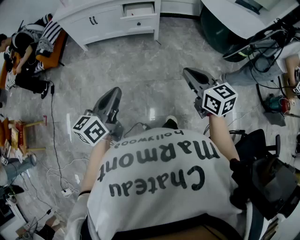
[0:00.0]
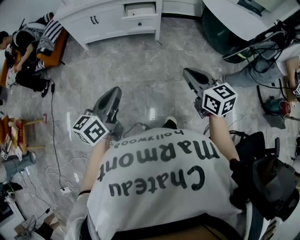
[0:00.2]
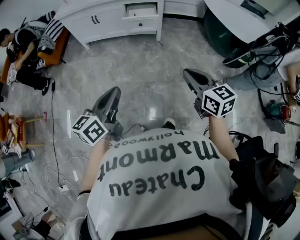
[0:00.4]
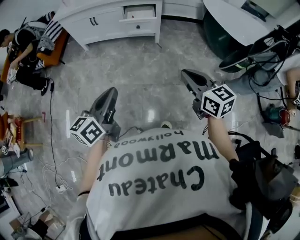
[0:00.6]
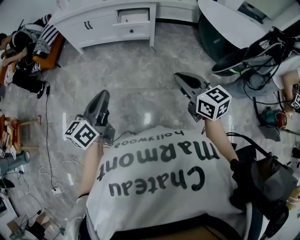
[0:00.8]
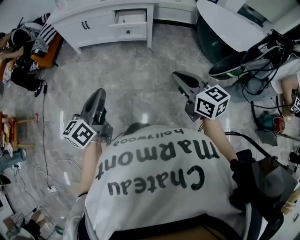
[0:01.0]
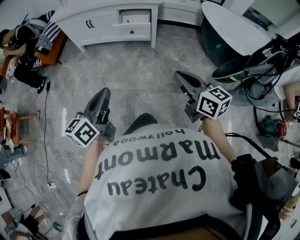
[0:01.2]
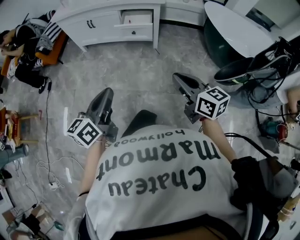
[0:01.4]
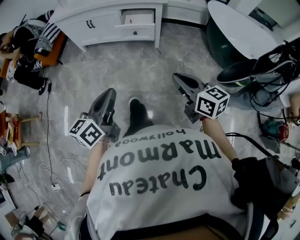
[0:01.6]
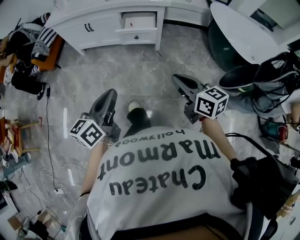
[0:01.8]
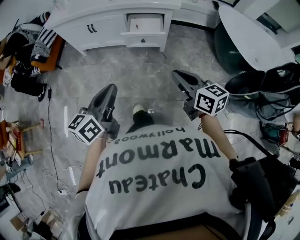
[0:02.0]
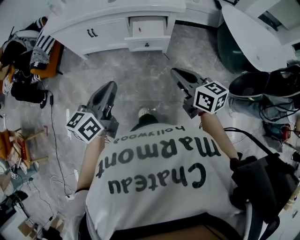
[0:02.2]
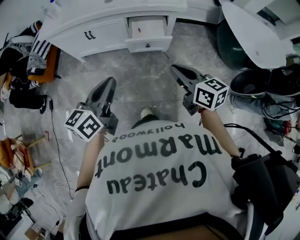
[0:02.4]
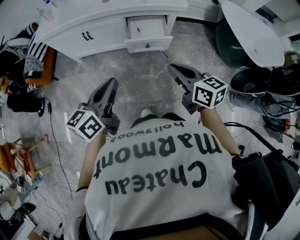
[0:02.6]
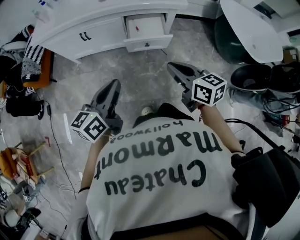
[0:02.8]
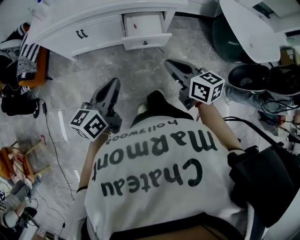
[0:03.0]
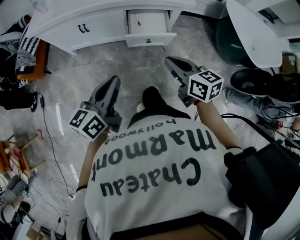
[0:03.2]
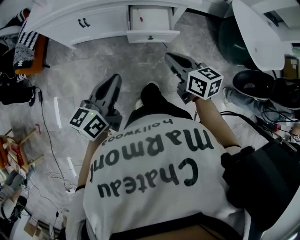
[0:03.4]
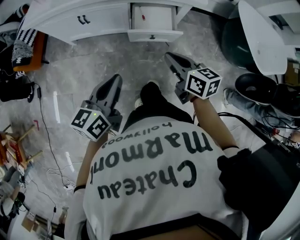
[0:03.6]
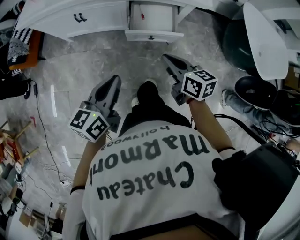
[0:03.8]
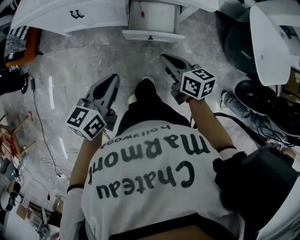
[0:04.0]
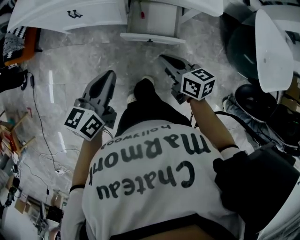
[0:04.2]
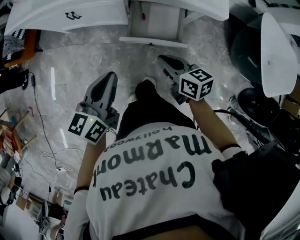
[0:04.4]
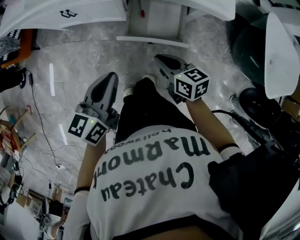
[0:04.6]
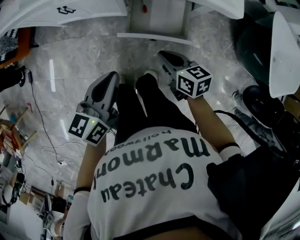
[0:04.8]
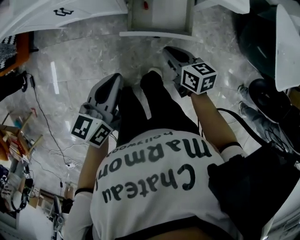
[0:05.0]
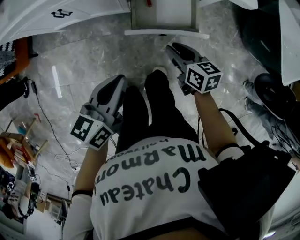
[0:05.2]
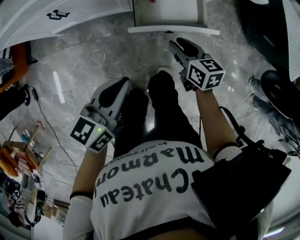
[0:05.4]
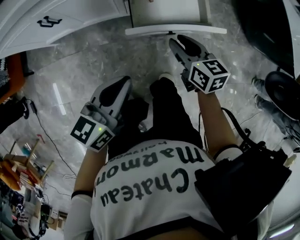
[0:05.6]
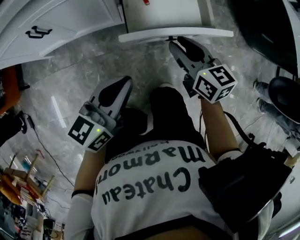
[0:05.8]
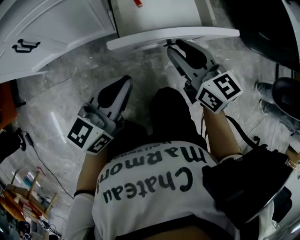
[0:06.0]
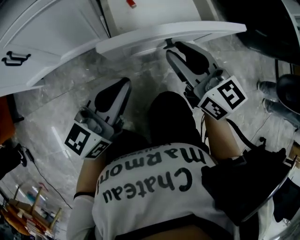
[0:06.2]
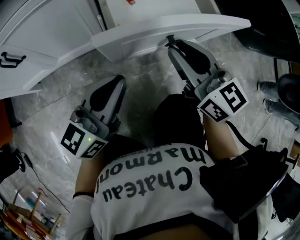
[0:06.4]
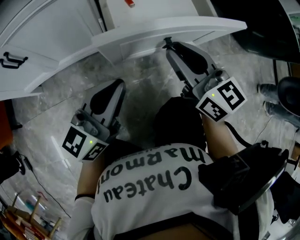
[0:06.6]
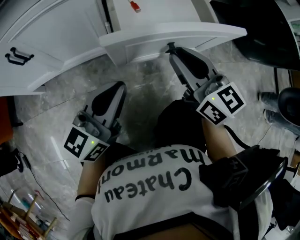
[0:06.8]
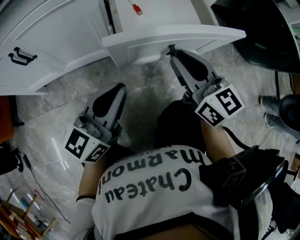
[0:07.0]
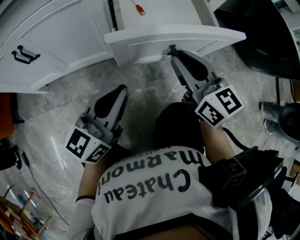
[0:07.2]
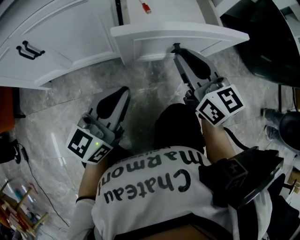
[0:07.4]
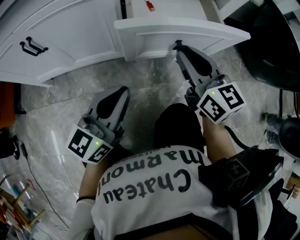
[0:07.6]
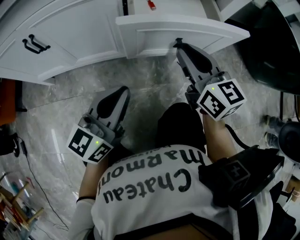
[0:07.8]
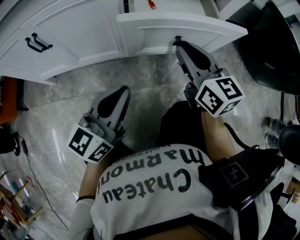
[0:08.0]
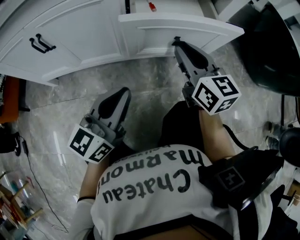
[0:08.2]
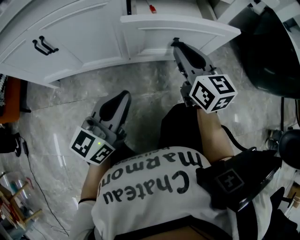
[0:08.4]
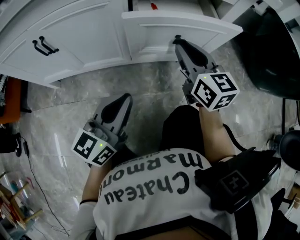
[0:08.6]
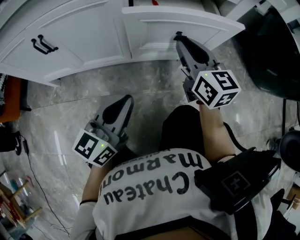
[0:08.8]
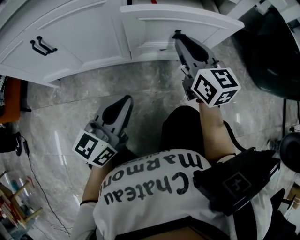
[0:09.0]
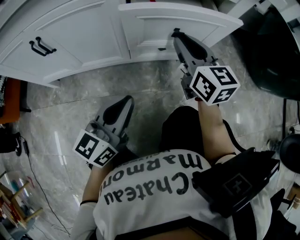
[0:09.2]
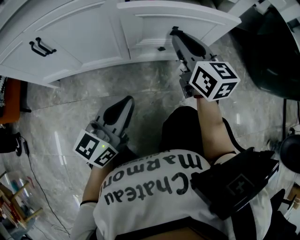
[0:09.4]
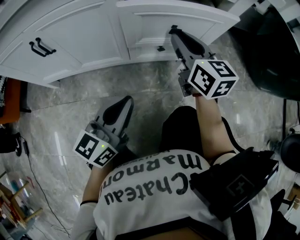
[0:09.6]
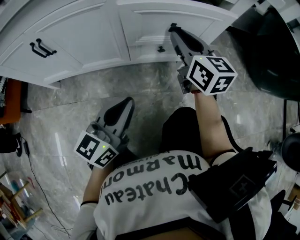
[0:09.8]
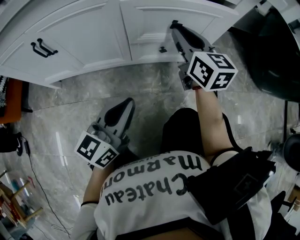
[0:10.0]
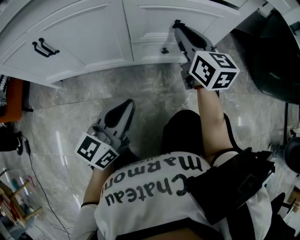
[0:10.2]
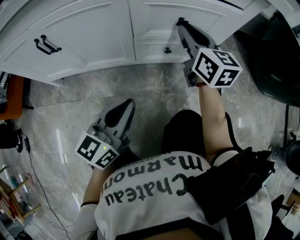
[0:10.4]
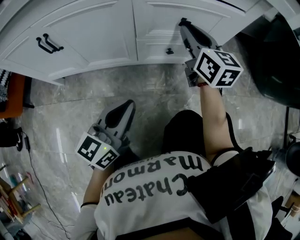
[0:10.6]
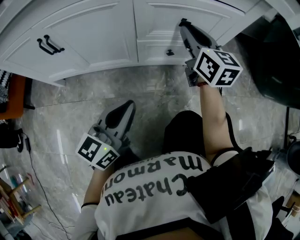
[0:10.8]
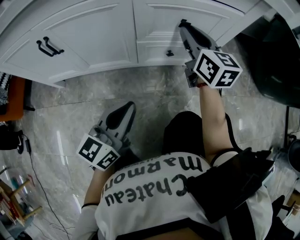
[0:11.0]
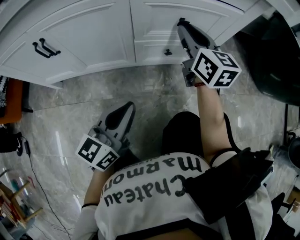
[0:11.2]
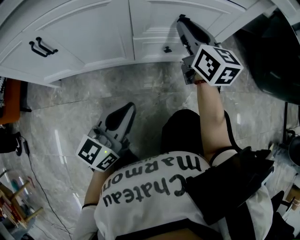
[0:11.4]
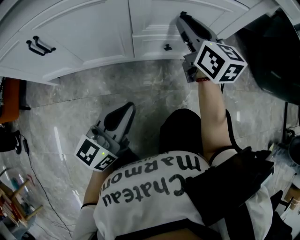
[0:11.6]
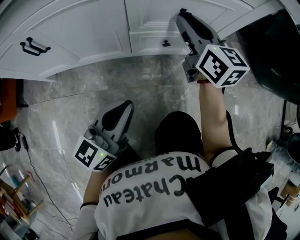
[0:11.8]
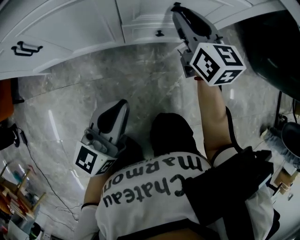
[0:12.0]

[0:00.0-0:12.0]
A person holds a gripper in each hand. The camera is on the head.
0:00.0 to 0:01.6: Both grippers travel together forward and to the right, some 15 cm.
0:01.6 to 0:03.0: The grippers both shift forward and to the left by approximately 30 cm.
0:03.0 to 0:04.4: The right gripper goes some 25 cm downward and forward; the left gripper is displaced forward and downward by some 15 cm.
0:04.4 to 0:06.0: The left gripper goes about 25 cm downward, and swivels approximately 30 degrees; the right gripper goes approximately 15 cm downward, turns by approximately 30 degrees, and opens up.
0:06.0 to 0:07.6: The left gripper changes place by some 5 cm; the right gripper goes some 5 cm forward.
0:07.6 to 0:09.0: The right gripper changes place by about 5 cm.
0:09.0 to 0:10.4: The right gripper is displaced forward by some 5 cm.
0:10.4 to 0:12.0: The grippers make only small movements.

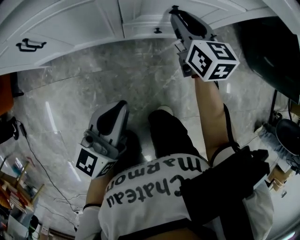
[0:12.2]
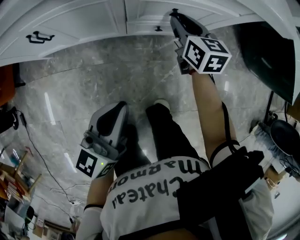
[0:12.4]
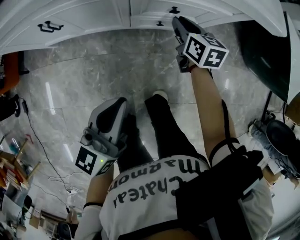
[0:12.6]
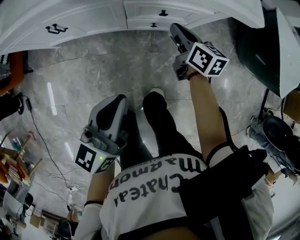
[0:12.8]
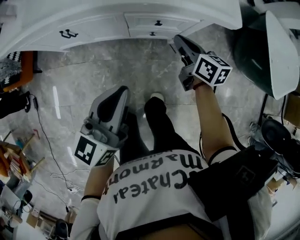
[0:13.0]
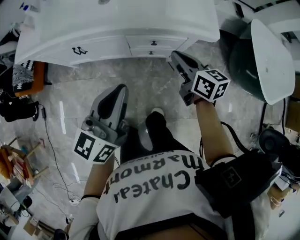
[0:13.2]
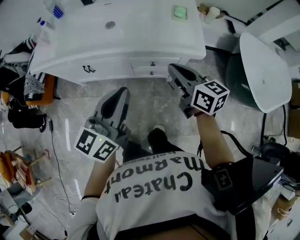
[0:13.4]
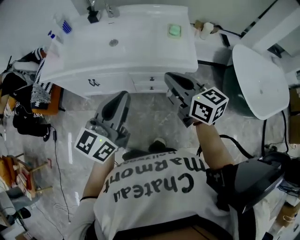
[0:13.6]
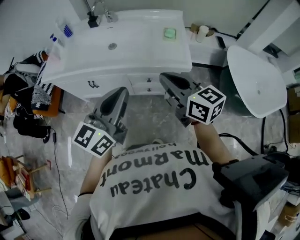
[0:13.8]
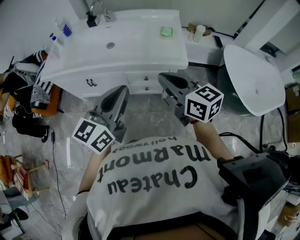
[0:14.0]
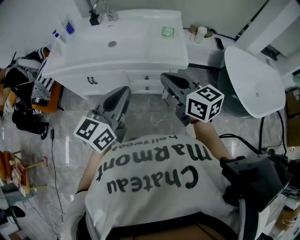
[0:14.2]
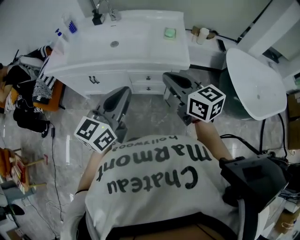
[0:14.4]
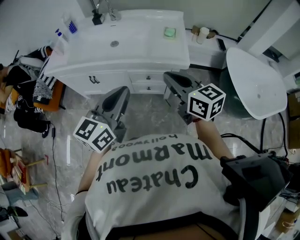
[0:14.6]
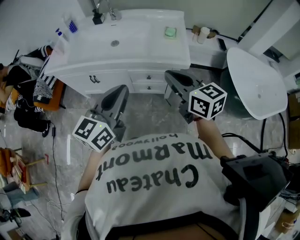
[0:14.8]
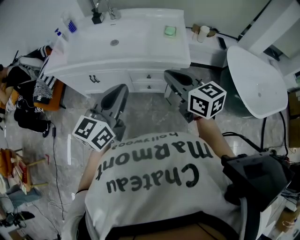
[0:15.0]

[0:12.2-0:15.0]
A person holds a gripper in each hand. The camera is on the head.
0:12.2 to 0:13.6: The two grippers go approximately 40 cm upward. The right gripper rotates some 30 degrees, and closes.
0:13.6 to 0:15.0: The right gripper shifts by approximately 5 cm.

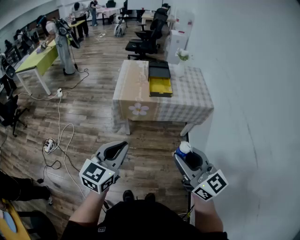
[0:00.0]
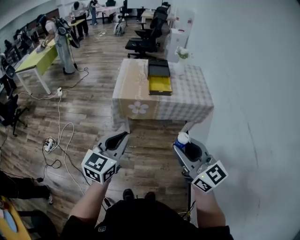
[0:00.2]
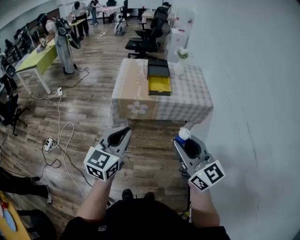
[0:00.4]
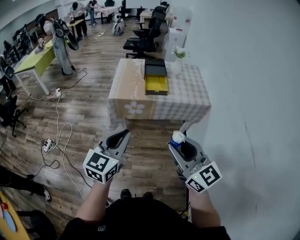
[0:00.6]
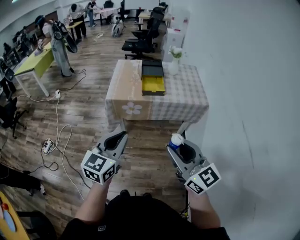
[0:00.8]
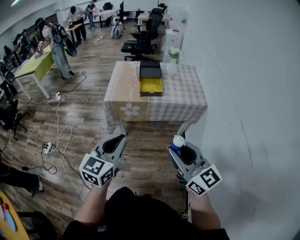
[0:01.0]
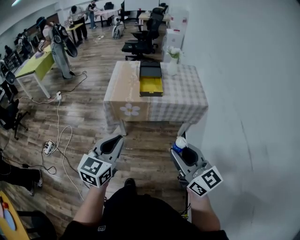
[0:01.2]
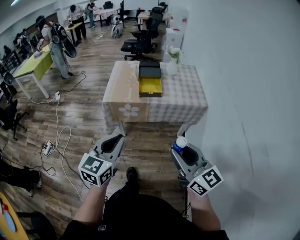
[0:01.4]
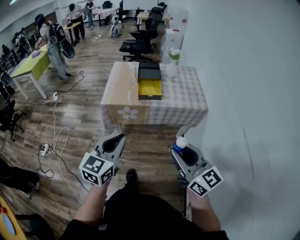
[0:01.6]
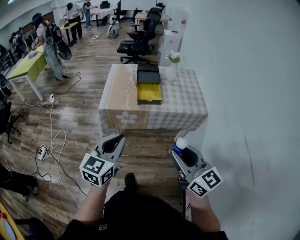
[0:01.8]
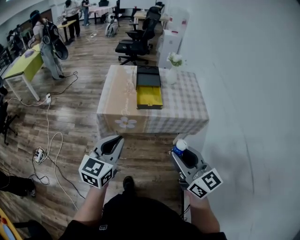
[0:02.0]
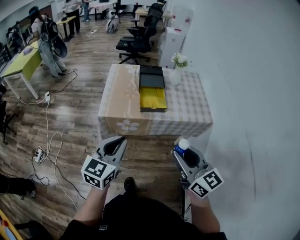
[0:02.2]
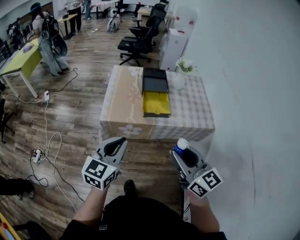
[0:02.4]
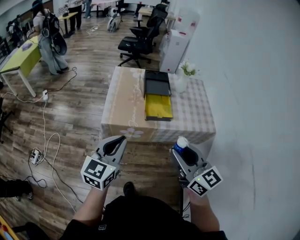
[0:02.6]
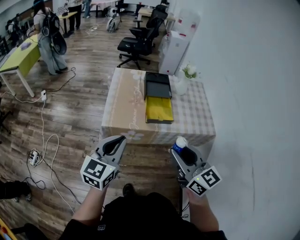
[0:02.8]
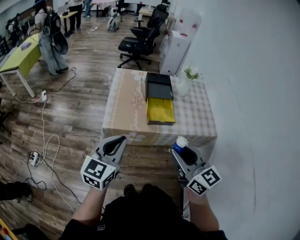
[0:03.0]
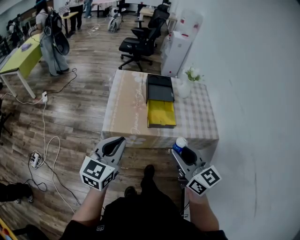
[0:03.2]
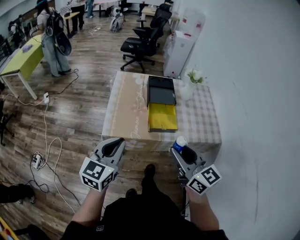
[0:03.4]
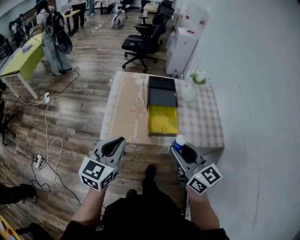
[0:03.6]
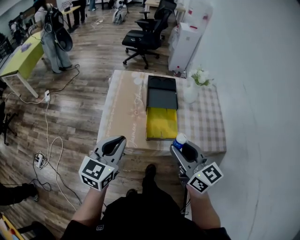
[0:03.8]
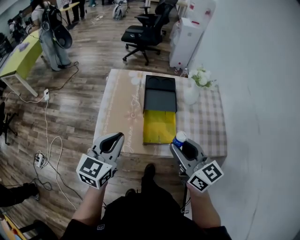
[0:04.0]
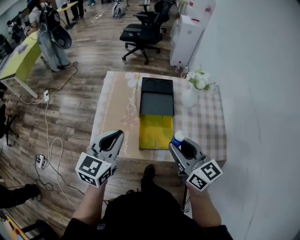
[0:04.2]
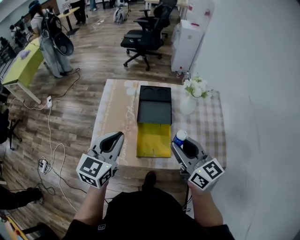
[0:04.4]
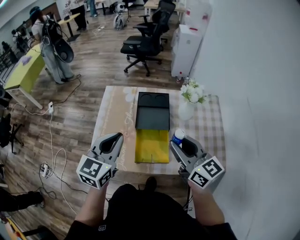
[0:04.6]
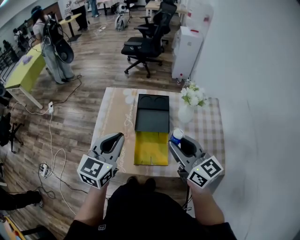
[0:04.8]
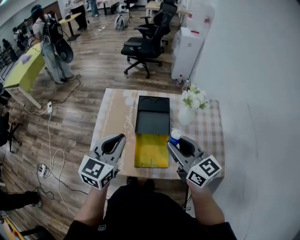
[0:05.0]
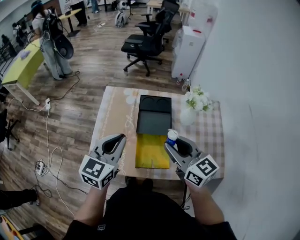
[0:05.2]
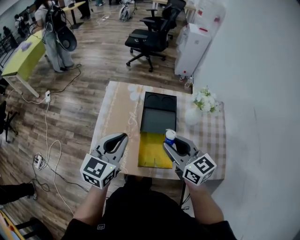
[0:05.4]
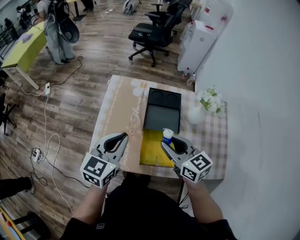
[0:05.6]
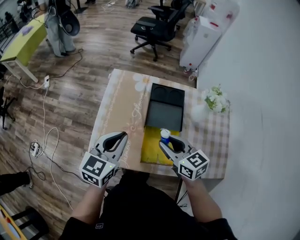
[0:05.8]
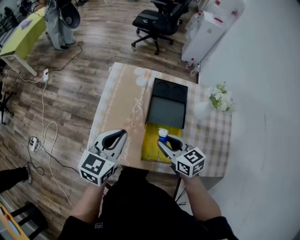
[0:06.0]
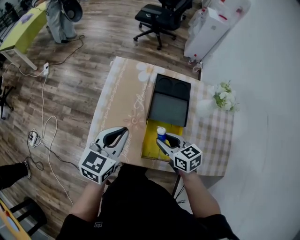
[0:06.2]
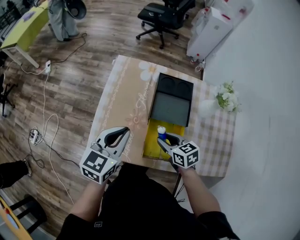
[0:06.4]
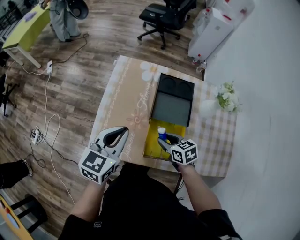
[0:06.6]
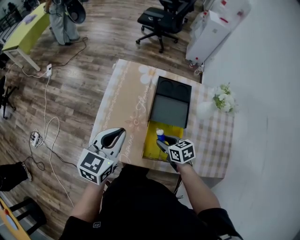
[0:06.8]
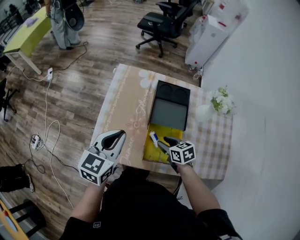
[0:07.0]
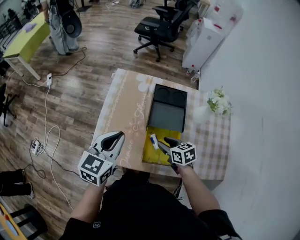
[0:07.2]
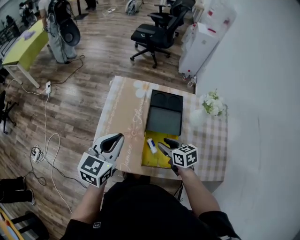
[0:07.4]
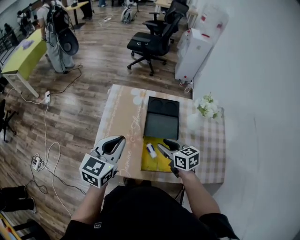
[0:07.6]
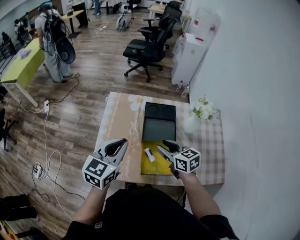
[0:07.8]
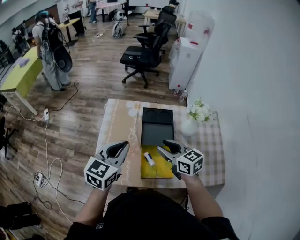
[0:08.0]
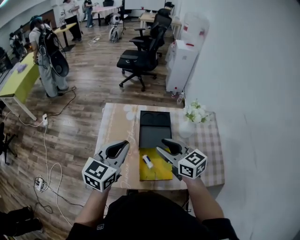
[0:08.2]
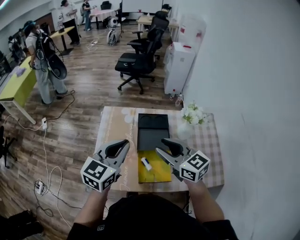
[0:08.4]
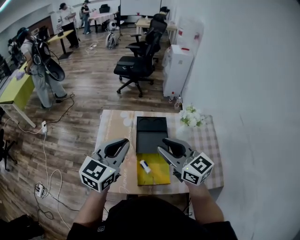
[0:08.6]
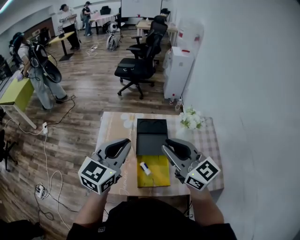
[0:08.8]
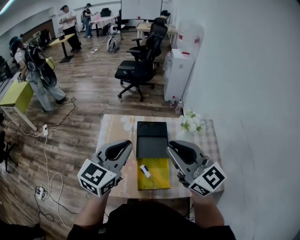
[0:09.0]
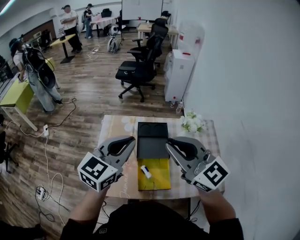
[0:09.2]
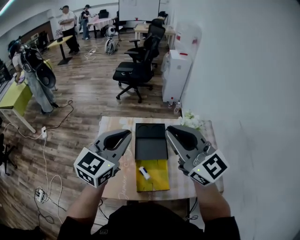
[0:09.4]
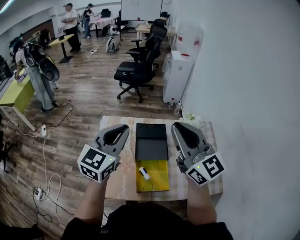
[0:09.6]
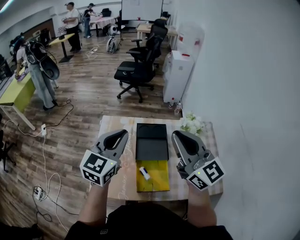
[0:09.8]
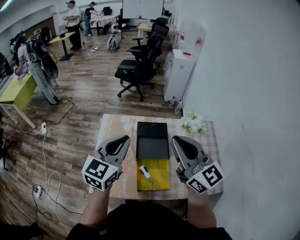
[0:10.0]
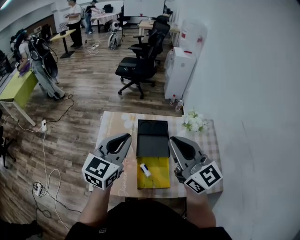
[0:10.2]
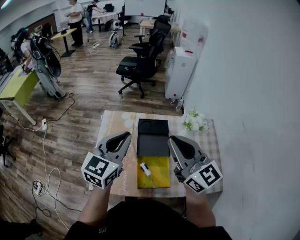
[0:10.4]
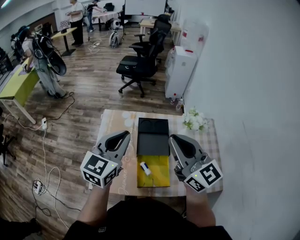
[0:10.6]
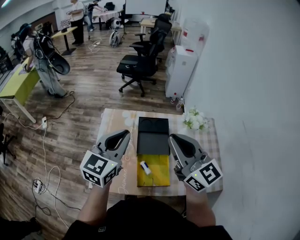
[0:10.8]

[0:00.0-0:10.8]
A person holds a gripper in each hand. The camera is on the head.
0:00.0 to 0:01.6: The two grippers go some 10 cm to the right and forward.
0:01.6 to 0:03.0: Both grippers travel together forward and to the left, about 25 cm.
0:03.0 to 0:04.6: Both grippers travel together forward and to the right, about 35 cm.
0:04.6 to 0:06.2: The left gripper moves downward, to the left and forward, approximately 10 cm. Meanwhile the right gripper moves downward and to the left, some 25 cm, and angles its fingers downward, by approximately 30 degrees.
0:06.2 to 0:07.8: The grippers both shift upward by some 5 cm.
0:07.8 to 0:09.2: The left gripper heads upward and to the right, covering about 15 cm. Meanwhile the right gripper moves upward, about 30 cm, turns by approximately 40 degrees, and closes.
0:09.2 to 0:10.8: The grippers move only a little.
